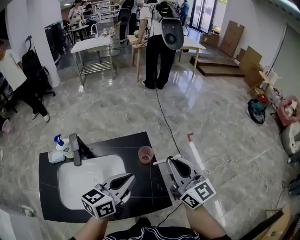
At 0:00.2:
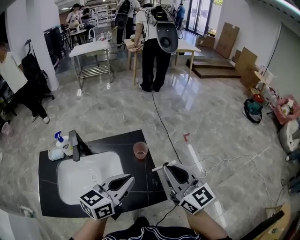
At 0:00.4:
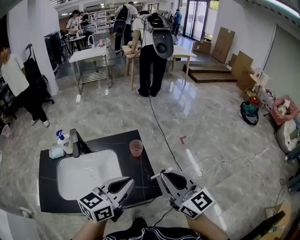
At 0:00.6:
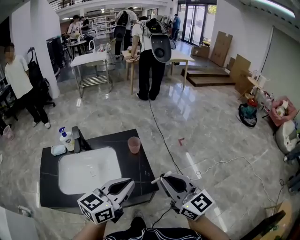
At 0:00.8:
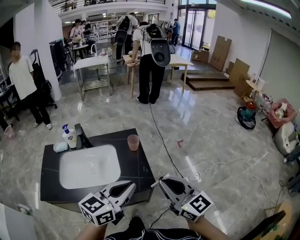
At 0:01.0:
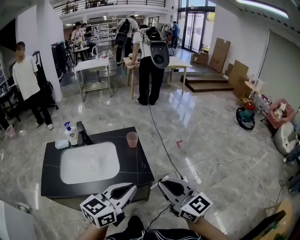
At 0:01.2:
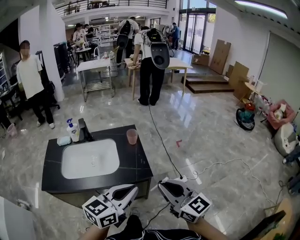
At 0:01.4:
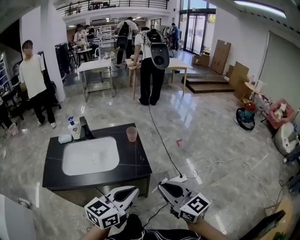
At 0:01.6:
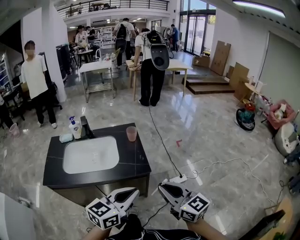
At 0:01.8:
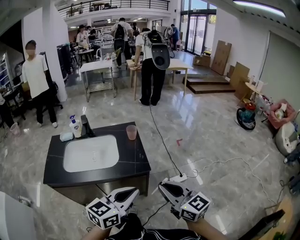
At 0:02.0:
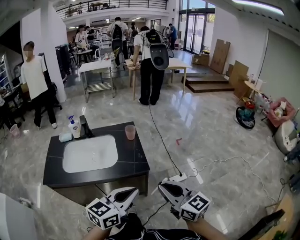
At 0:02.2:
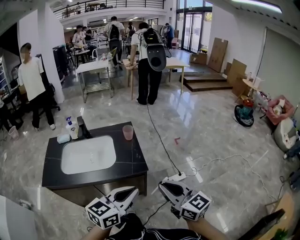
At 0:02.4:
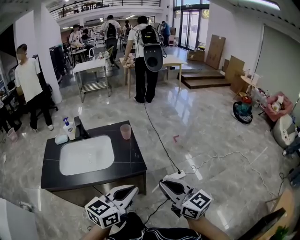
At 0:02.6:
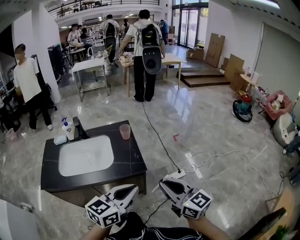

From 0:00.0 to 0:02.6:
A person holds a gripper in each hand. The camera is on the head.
From 0:00.0 to 0:01.2: The grippers both shift backward by about 25 cm.
From 0:01.2 to 0:02.6: The right gripper changes place by about 5 cm.

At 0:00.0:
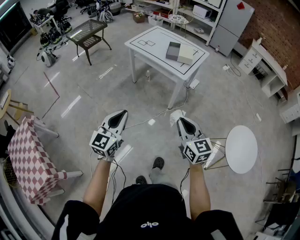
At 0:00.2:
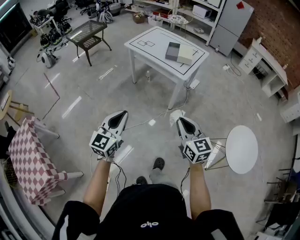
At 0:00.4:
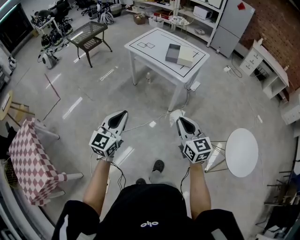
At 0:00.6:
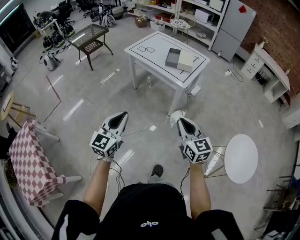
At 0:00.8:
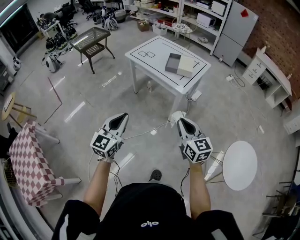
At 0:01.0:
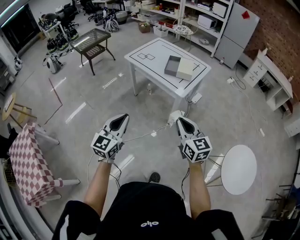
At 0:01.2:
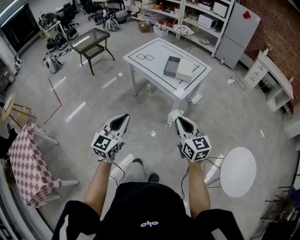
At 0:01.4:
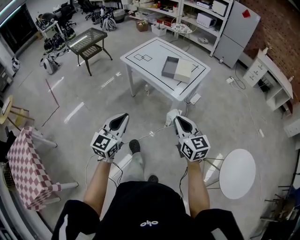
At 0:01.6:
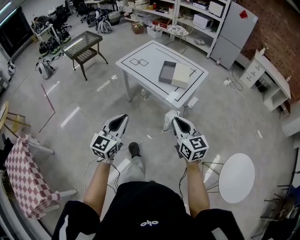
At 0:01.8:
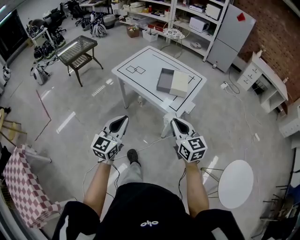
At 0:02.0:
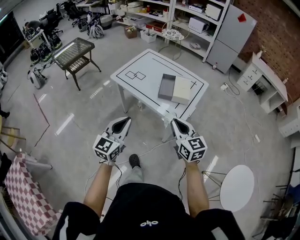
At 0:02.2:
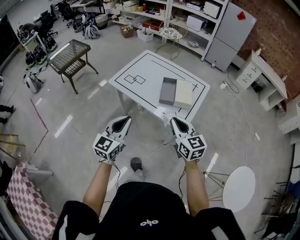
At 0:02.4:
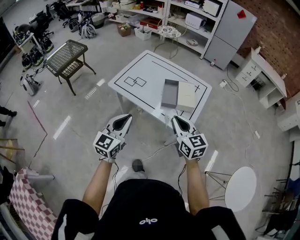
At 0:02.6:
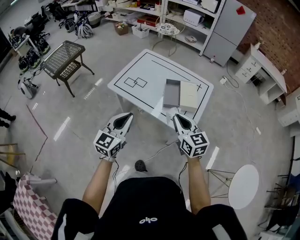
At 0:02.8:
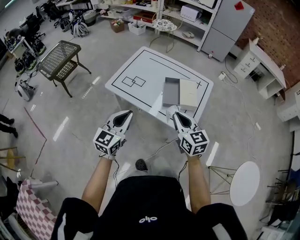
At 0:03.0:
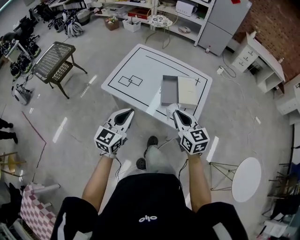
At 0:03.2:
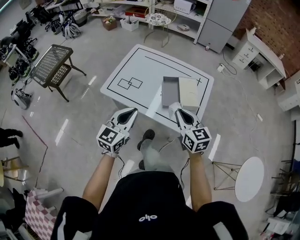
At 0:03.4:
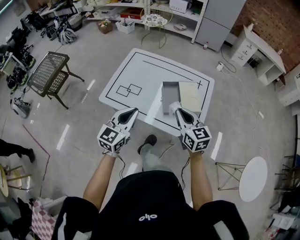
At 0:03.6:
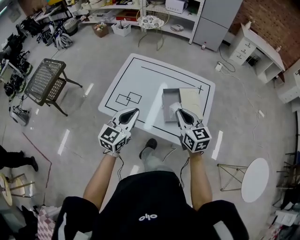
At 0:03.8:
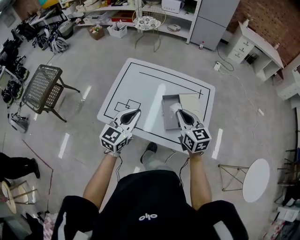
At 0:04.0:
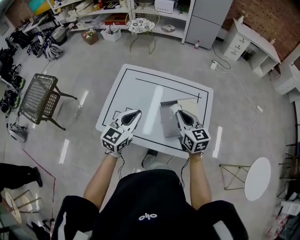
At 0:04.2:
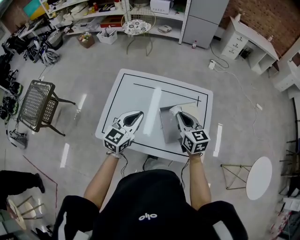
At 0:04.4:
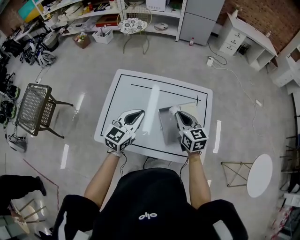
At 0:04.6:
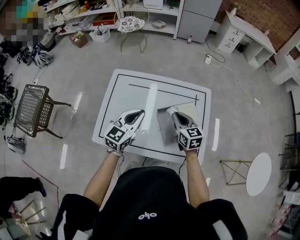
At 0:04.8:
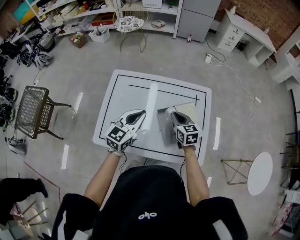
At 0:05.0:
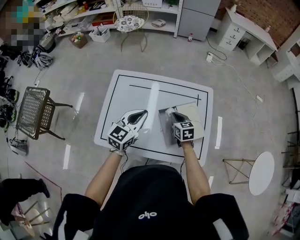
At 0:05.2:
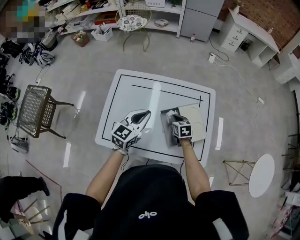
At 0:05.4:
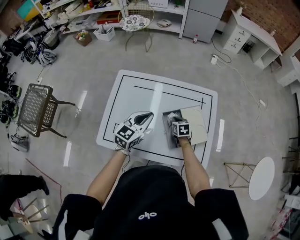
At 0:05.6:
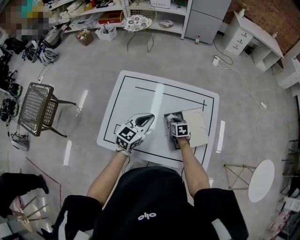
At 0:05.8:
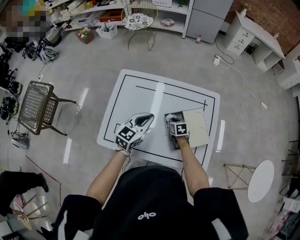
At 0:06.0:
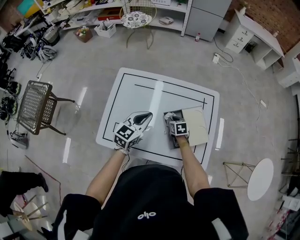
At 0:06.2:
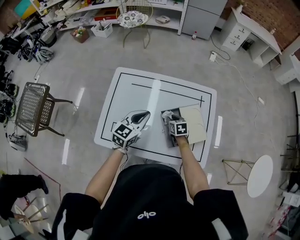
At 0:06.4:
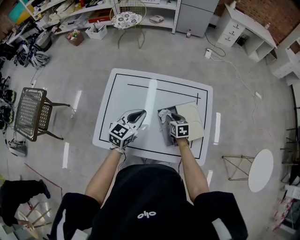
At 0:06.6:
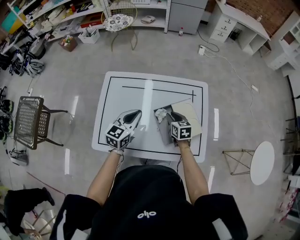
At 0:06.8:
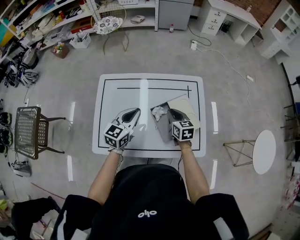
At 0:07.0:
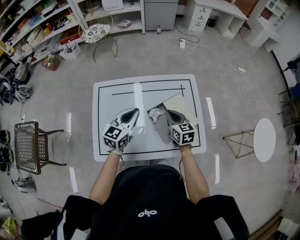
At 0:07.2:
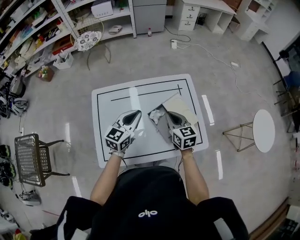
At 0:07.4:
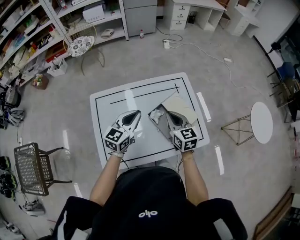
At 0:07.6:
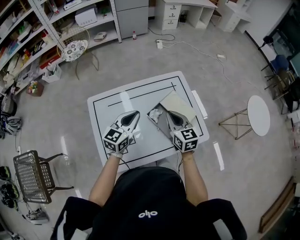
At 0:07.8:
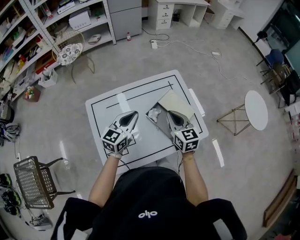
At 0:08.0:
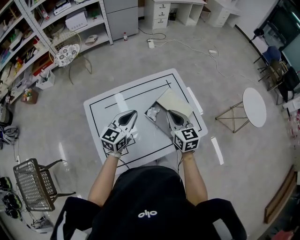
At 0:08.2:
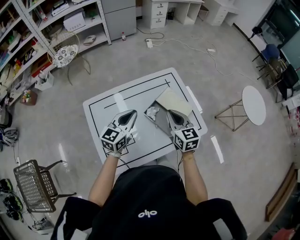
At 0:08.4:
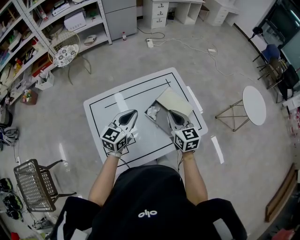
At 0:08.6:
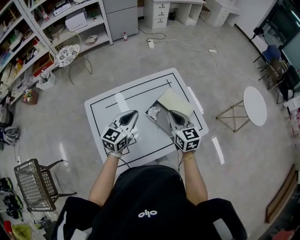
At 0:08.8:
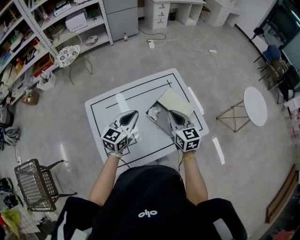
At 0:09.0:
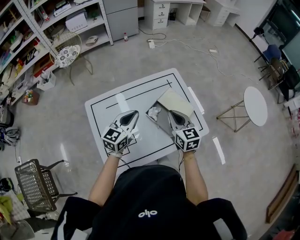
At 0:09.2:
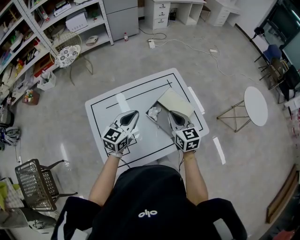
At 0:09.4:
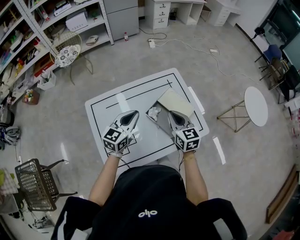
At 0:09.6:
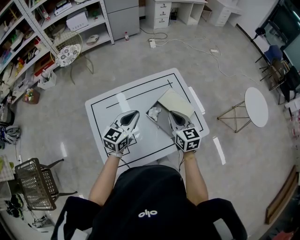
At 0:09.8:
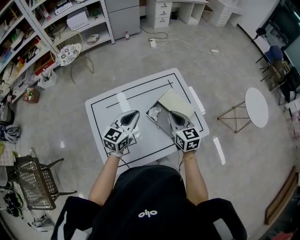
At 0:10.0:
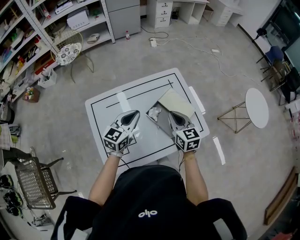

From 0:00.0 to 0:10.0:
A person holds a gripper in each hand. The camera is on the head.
From 0:00.0 to 0:01.4: The left gripper shifts roughly 20 cm forward and to the right; the right gripper is displaced forward by about 20 cm.
From 0:01.4 to 0:02.8: Both grippers are carried forward, some 40 cm.
From 0:02.8 to 0:04.2: The two grippers go some 35 cm forward. The left gripper rotates some 20 degrees.
From 0:04.2 to 0:05.8: The right gripper goes approximately 30 cm downward, and tilts its fingers some 30 degrees downward, while the left gripper is displaced forward and downward by about 10 cm.
From 0:05.8 to 0:07.2: The right gripper shifts approximately 25 cm upward, and swivels about 30 degrees.
From 0:07.2 to 0:08.6: The right gripper changes place by approximately 5 cm.
From 0:08.6 to 0:10.0: The grippers make only small movements.

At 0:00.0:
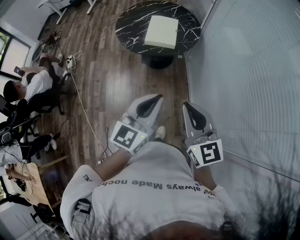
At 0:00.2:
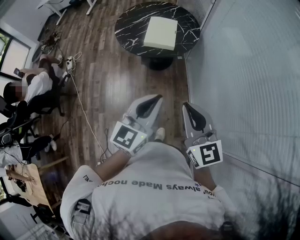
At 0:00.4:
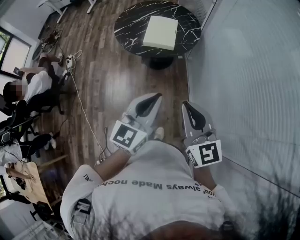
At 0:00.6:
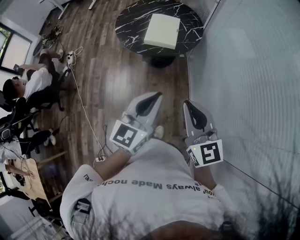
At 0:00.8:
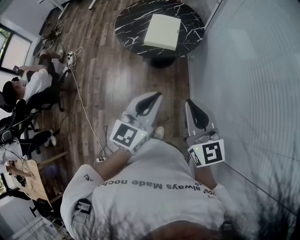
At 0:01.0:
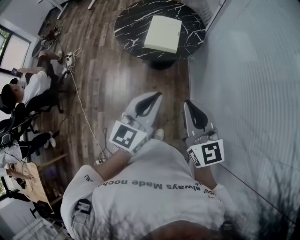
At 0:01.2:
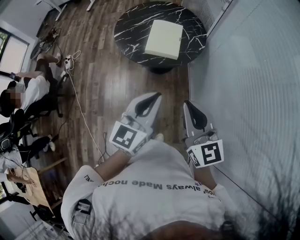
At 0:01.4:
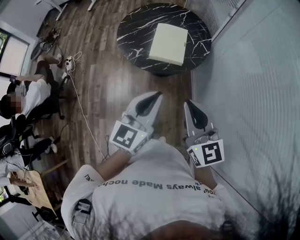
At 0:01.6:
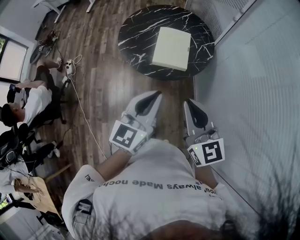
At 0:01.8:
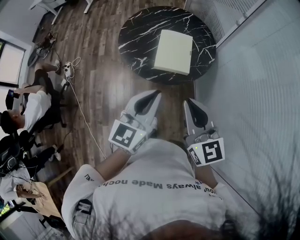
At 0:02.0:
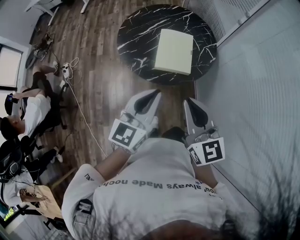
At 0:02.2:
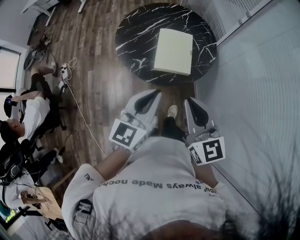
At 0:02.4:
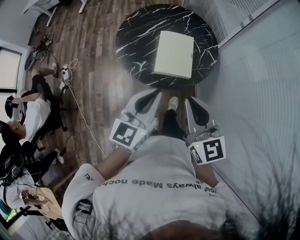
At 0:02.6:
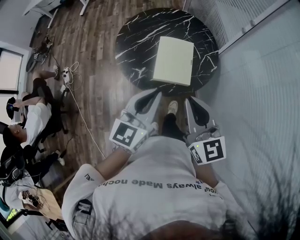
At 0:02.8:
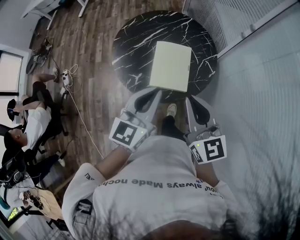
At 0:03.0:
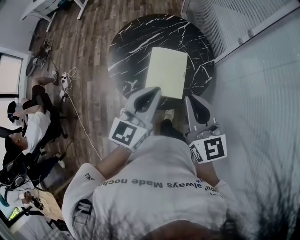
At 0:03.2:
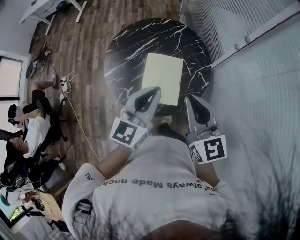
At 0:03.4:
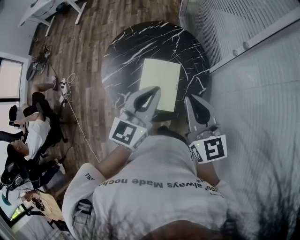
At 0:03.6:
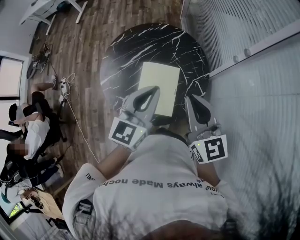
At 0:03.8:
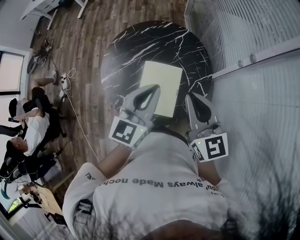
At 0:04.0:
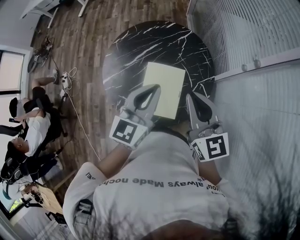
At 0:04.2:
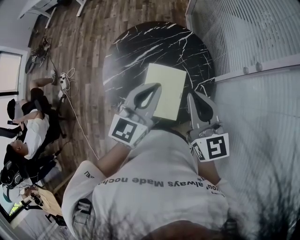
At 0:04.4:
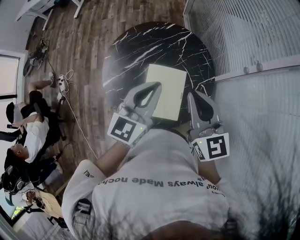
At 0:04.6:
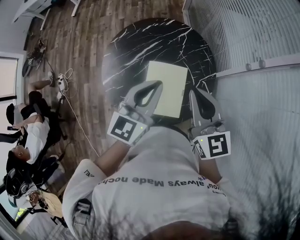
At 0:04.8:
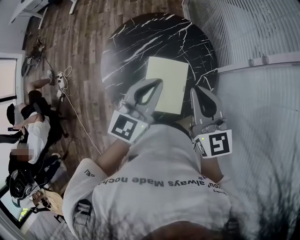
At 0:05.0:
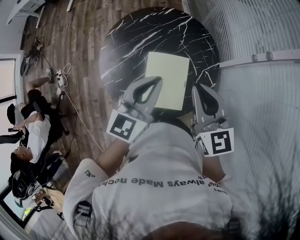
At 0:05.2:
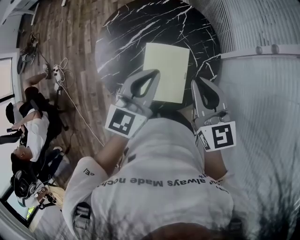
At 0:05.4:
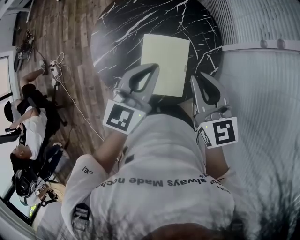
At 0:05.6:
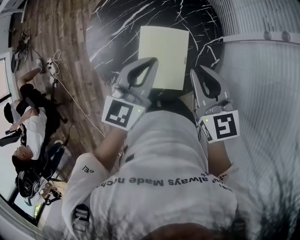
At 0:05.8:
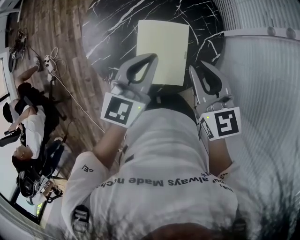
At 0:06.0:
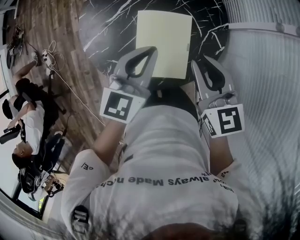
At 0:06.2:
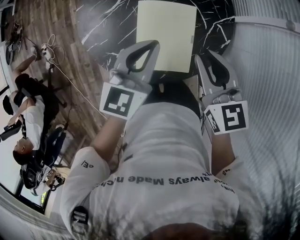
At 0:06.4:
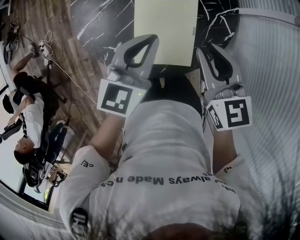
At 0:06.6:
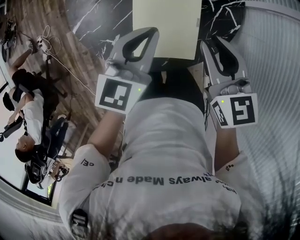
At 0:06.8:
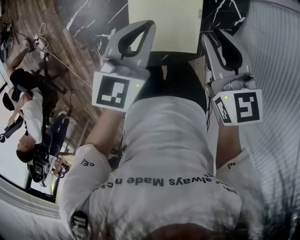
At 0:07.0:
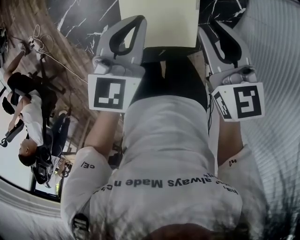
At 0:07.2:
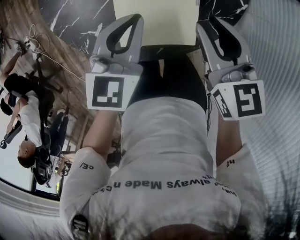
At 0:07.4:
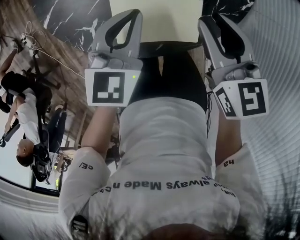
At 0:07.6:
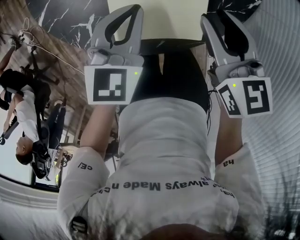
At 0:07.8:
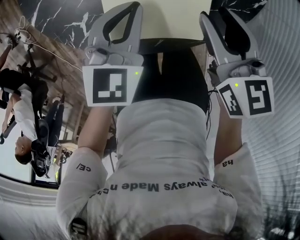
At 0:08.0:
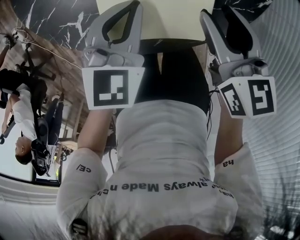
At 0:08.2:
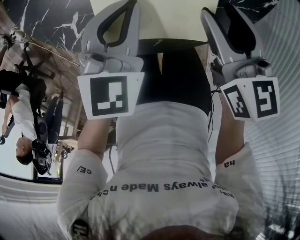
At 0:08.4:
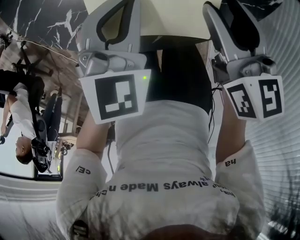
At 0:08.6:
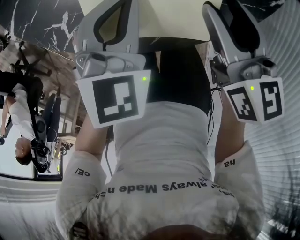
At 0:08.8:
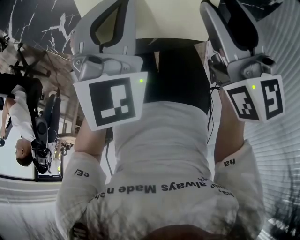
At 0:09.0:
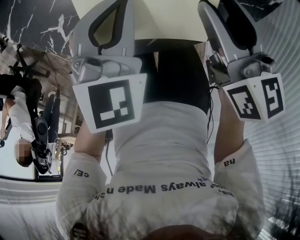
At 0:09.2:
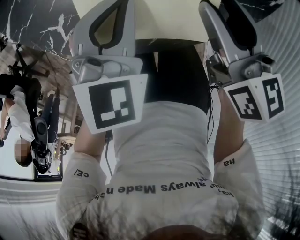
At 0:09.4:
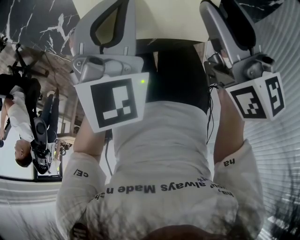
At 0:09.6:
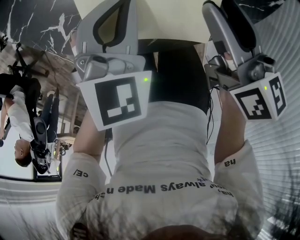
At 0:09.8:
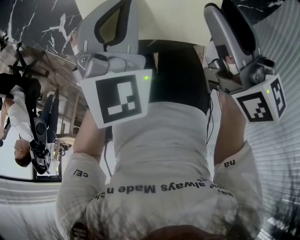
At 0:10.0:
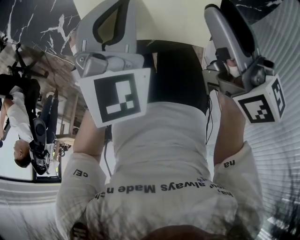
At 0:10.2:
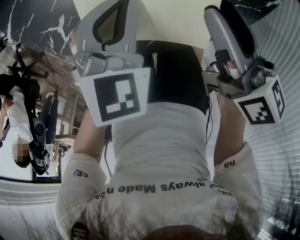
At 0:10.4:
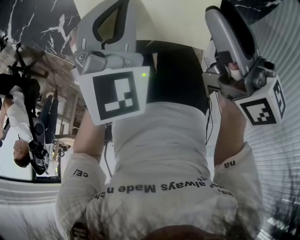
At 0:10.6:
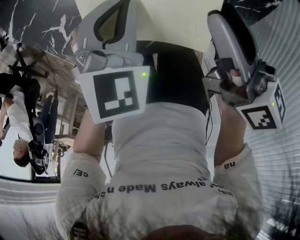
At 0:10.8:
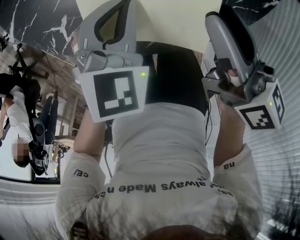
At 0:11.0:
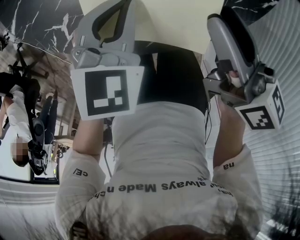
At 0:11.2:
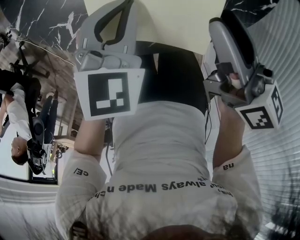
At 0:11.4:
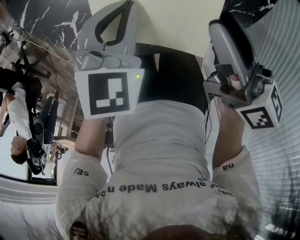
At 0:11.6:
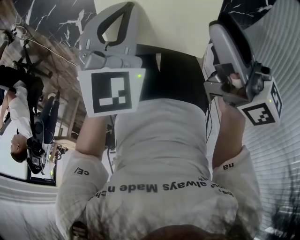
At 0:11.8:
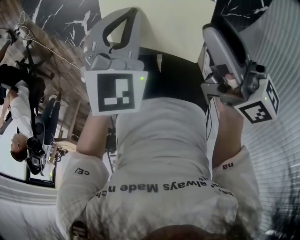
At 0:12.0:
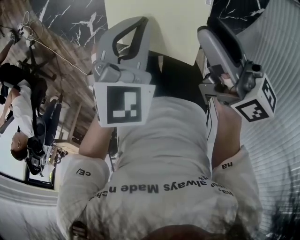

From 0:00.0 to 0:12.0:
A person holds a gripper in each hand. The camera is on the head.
From 0:00.0 to 0:01.6: Both grippers travel together forward, some 25 cm.
From 0:01.6 to 0:03.0: Both grippers travel together forward, about 25 cm.
From 0:03.0 to 0:04.4: Both grippers travel together forward, about 20 cm.
From 0:04.4 to 0:06.0: The grippers both shift downward by roughly 15 cm.
From 0:06.0 to 0:07.6: Both grippers travel together downward, about 20 cm.
From 0:07.6 to 0:09.0: Both grippers move downward, some 5 cm.
From 0:09.0 to 0:10.4: The grippers stay close to where they were, moving slightly.
From 0:10.4 to 0:12.0: The two grippers go roughly 10 cm upward.
